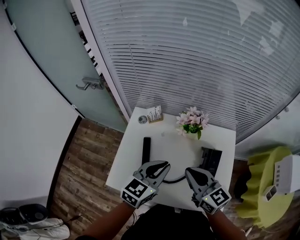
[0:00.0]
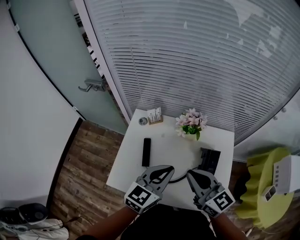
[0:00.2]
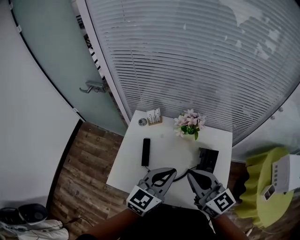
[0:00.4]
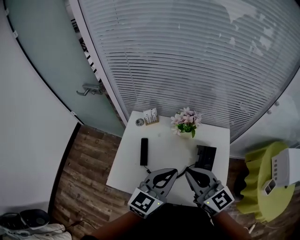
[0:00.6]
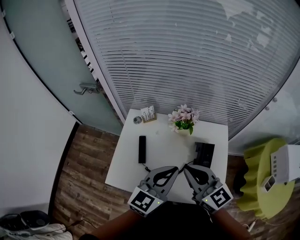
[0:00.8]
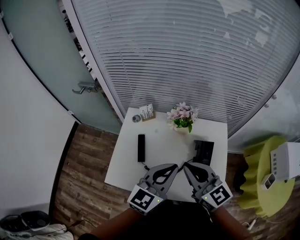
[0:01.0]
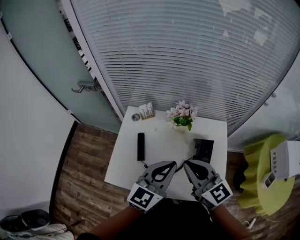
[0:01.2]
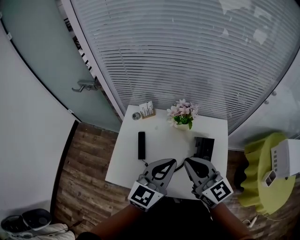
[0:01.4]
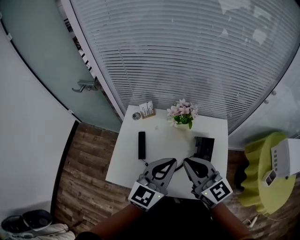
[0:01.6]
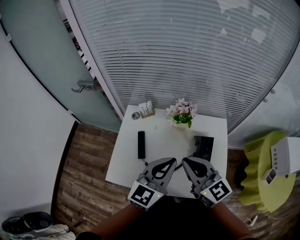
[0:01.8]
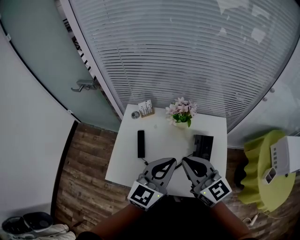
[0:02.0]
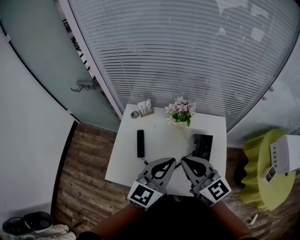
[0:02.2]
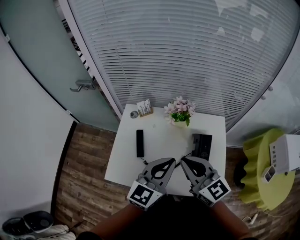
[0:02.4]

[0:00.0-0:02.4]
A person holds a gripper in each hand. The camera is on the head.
0:00.0 to 0:01.2: The right gripper heads upward, covering about 5 cm; the left gripper is displaced upward, backward and to the right by approximately 10 cm.
0:01.2 to 0:02.4: The grippers stay close to where they were, moving slightly.

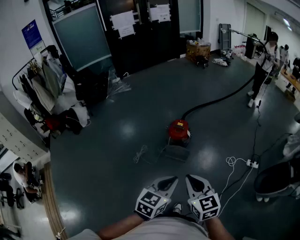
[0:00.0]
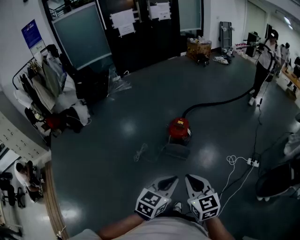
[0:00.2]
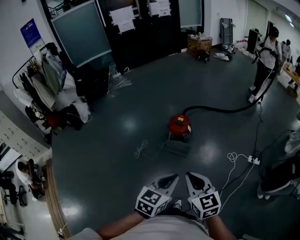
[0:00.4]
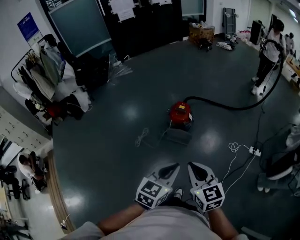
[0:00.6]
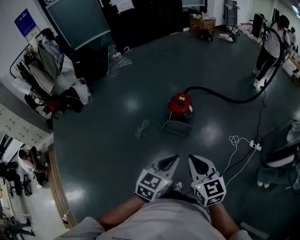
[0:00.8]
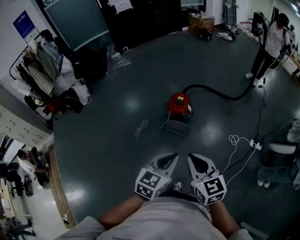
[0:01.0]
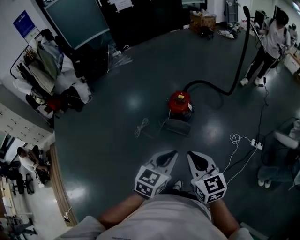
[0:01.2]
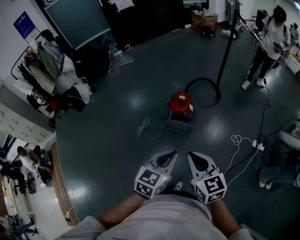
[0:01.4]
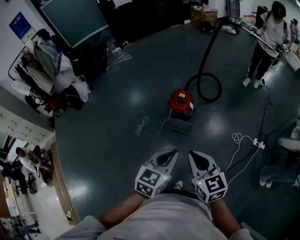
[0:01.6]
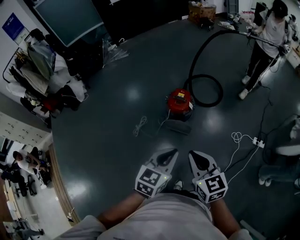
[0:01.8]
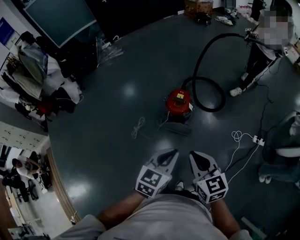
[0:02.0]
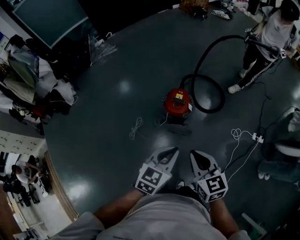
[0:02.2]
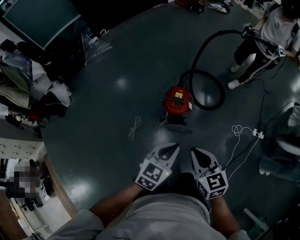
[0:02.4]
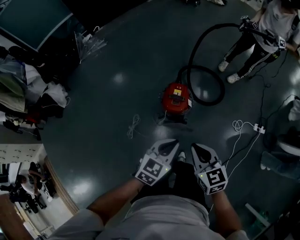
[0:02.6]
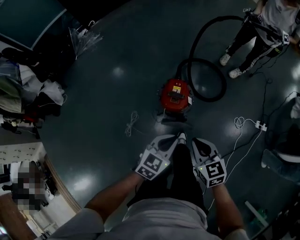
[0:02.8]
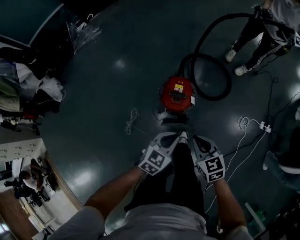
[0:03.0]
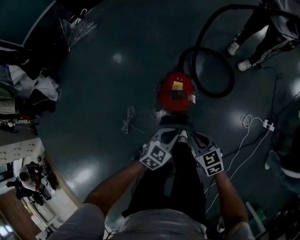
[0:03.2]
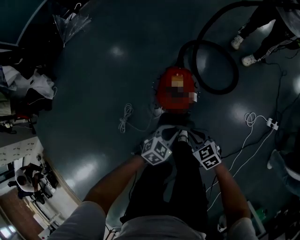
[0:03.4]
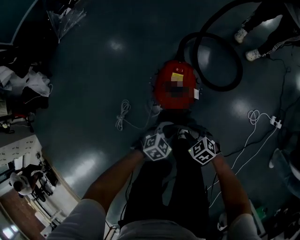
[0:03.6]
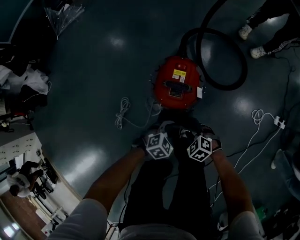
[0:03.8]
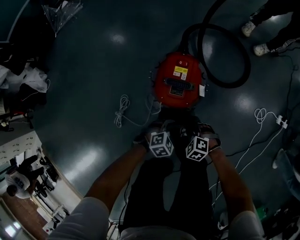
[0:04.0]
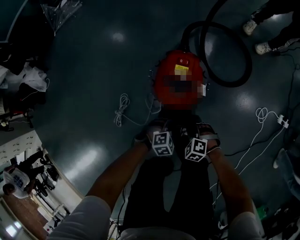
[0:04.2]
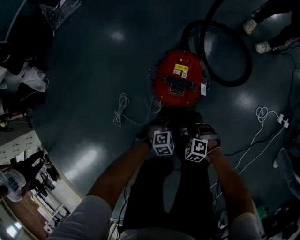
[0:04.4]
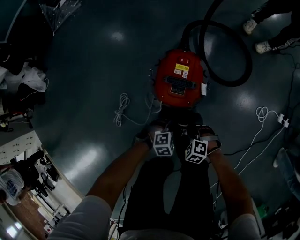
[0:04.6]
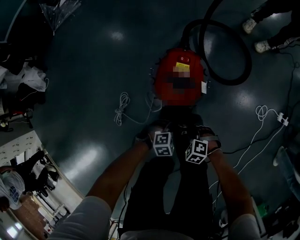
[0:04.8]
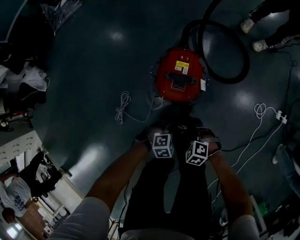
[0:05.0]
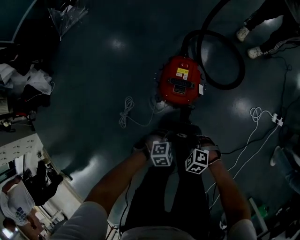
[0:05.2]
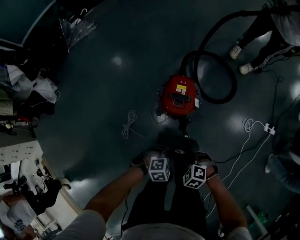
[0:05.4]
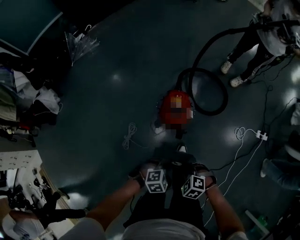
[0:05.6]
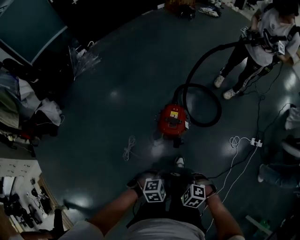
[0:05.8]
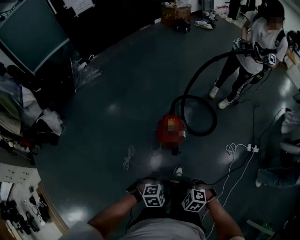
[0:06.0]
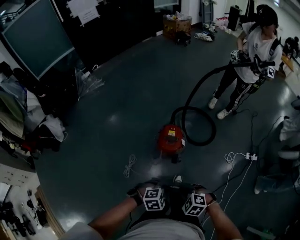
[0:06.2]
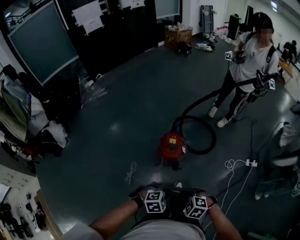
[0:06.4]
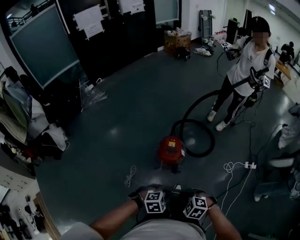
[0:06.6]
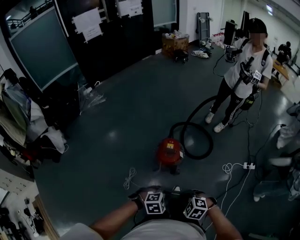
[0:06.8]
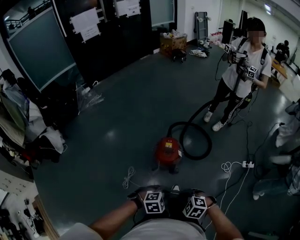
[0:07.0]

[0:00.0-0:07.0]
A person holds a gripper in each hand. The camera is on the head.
0:00.0 to 0:01.4: The left gripper travels forward by about 5 cm. Meanwhile the right gripper travels to the right and forward by some 5 cm.
0:01.4 to 0:02.8: Both grippers move forward and downward, some 40 cm. The left gripper rotates roughly 20 degrees.
0:02.8 to 0:04.2: The grippers both shift downward by approximately 50 cm. The right gripper tilts its fingers roughly 40 degrees downward, and opens its fingers; the left gripper points its fingers approximately 30 degrees further downward, and opens its fingers.
0:04.2 to 0:05.6: The grippers both shift upward by about 35 cm.
0:05.6 to 0:07.0: The two grippers go about 20 cm upward.

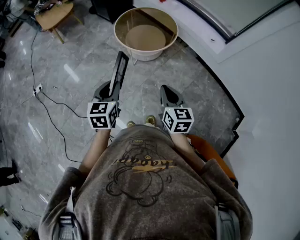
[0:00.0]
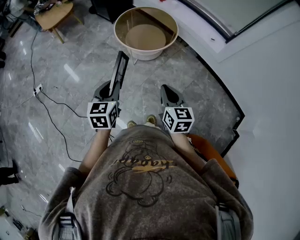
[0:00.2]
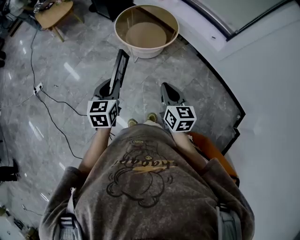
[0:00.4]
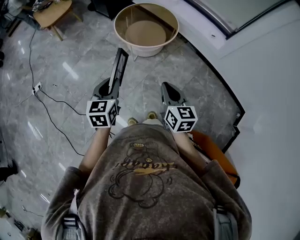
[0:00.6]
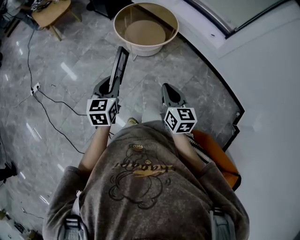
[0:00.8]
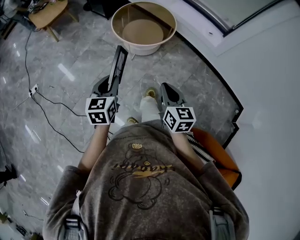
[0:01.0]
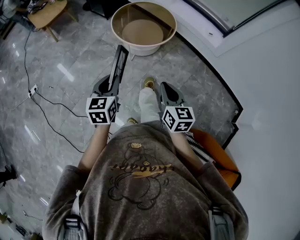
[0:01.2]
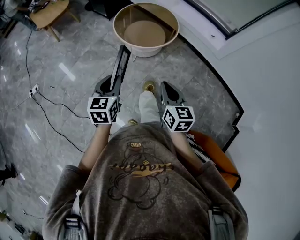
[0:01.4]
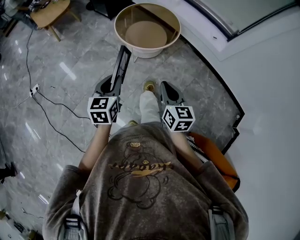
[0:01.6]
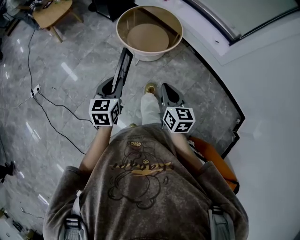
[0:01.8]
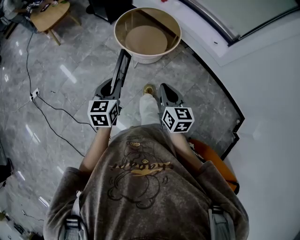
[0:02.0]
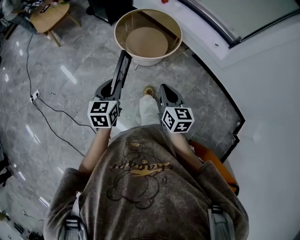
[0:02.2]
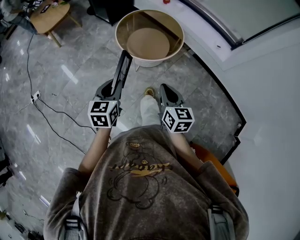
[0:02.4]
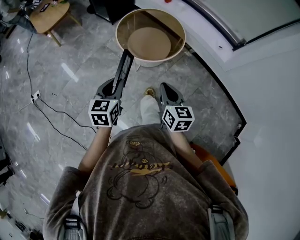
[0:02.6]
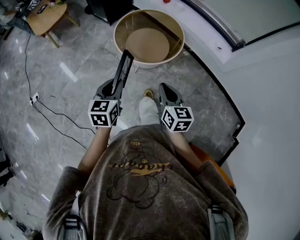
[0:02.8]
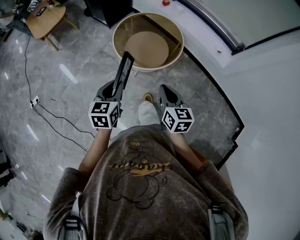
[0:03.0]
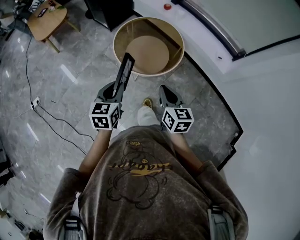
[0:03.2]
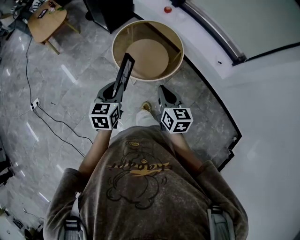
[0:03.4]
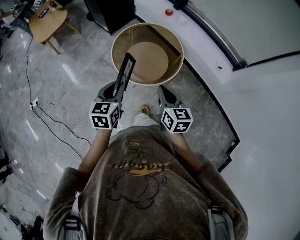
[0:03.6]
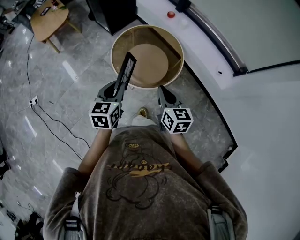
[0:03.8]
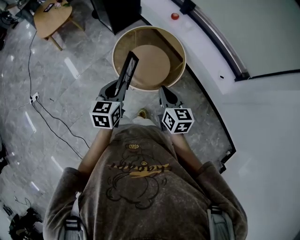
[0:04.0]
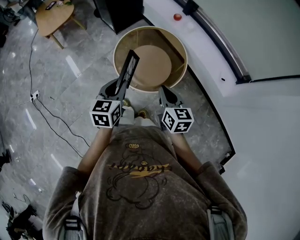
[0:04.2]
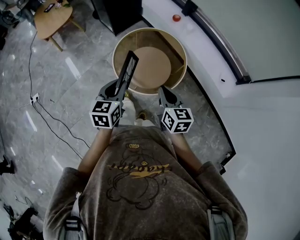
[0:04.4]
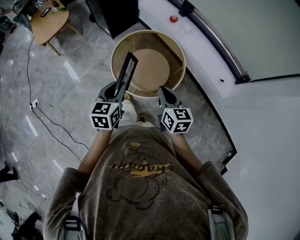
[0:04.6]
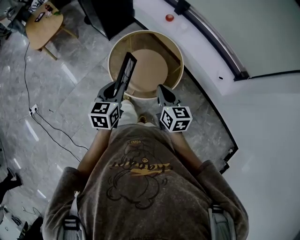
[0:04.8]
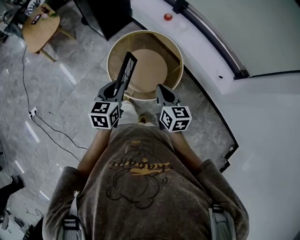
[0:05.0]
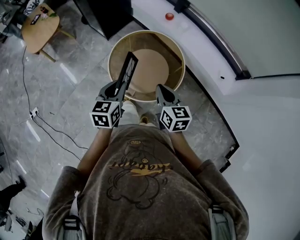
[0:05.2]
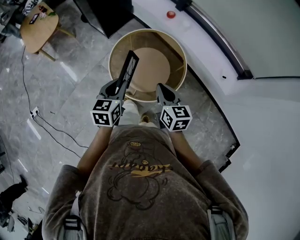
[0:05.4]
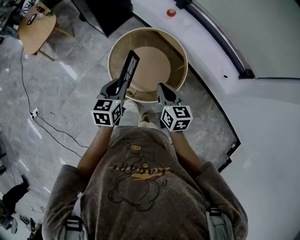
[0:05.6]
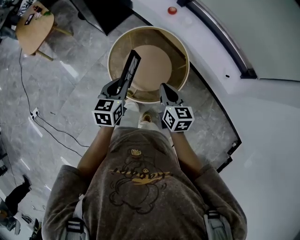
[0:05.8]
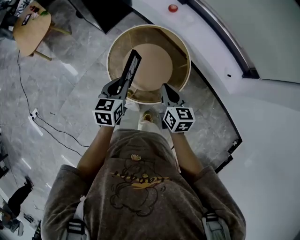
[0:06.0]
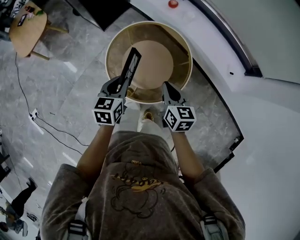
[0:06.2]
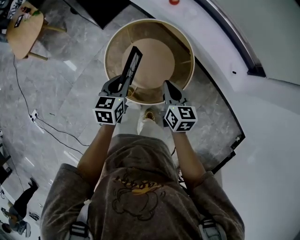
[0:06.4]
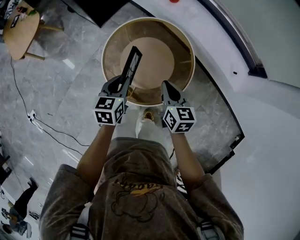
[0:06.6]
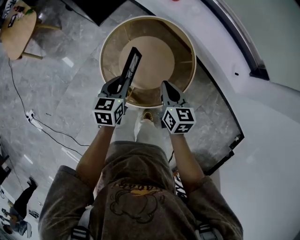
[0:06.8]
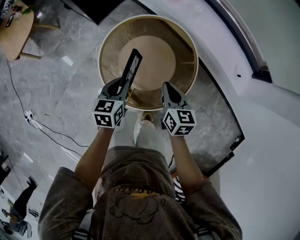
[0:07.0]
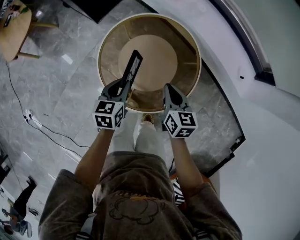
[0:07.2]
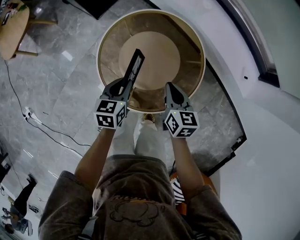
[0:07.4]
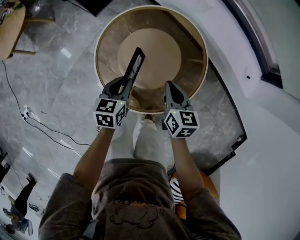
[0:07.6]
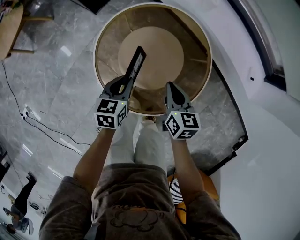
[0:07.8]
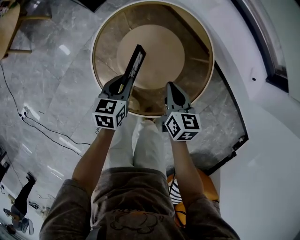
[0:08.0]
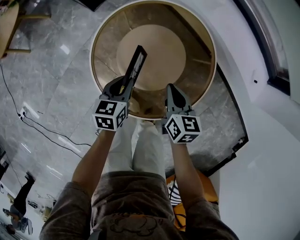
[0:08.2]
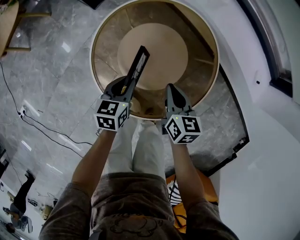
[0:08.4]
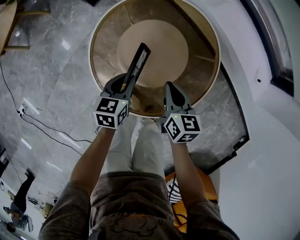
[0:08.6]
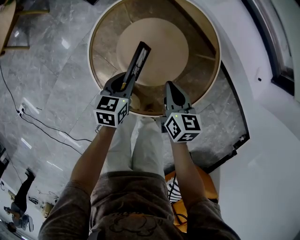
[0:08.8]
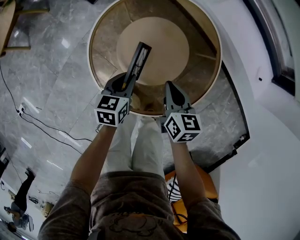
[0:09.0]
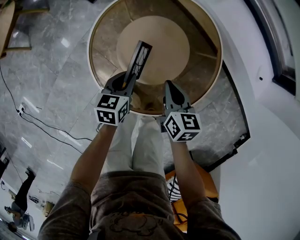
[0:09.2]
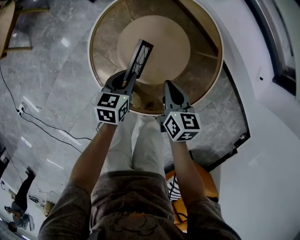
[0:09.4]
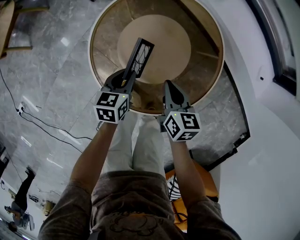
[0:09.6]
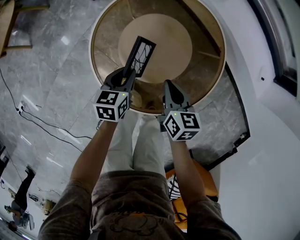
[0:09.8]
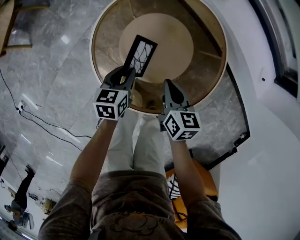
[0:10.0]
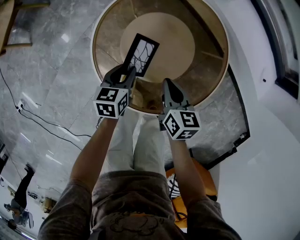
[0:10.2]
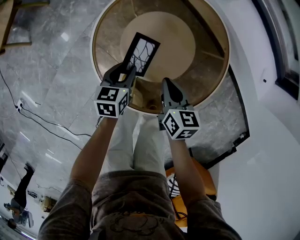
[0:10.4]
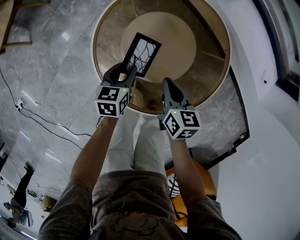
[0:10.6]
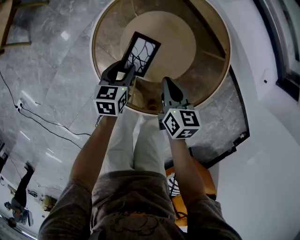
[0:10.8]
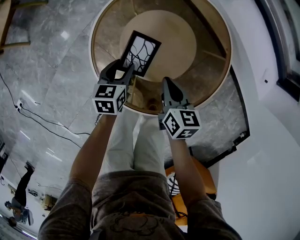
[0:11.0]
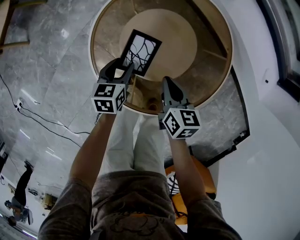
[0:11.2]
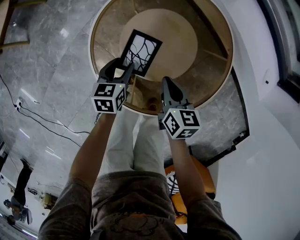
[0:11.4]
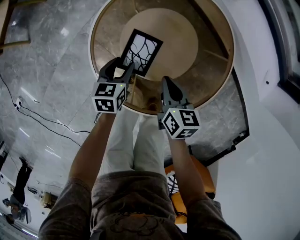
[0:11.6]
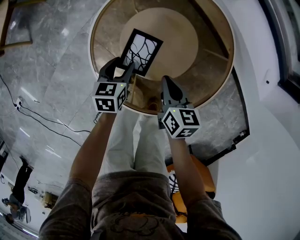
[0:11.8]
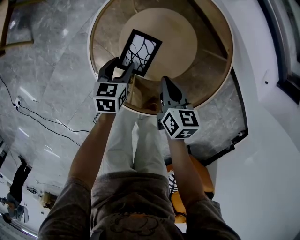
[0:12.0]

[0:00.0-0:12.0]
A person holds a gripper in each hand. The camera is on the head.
0:00.0 to 0:01.6: The left gripper ends up some 5 cm from where it was.
0:01.6 to 0:03.0: The grippers both shift forward by some 15 cm.
0:03.0 to 0:04.4: Both grippers move forward, approximately 20 cm.
0:04.4 to 0:06.0: Both grippers travel together forward and downward, approximately 15 cm.
0:06.0 to 0:07.6: The left gripper heads downward, covering approximately 20 cm. The right gripper moves downward and forward, approximately 20 cm.
0:07.6 to 0:09.0: Both grippers move downward, some 10 cm.
0:09.0 to 0:10.4: The grippers stay close to where they were, moving slightly.
0:10.4 to 0:12.0: The grippers make only small movements.

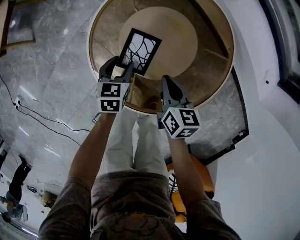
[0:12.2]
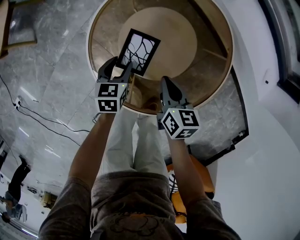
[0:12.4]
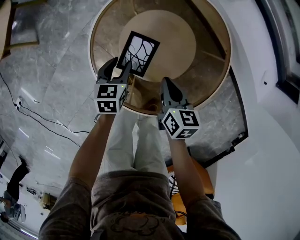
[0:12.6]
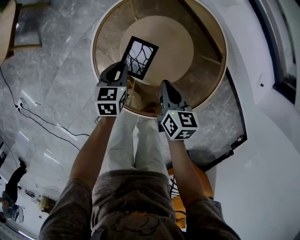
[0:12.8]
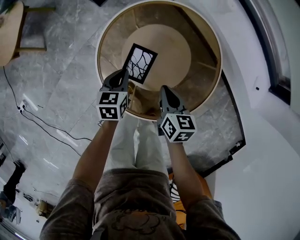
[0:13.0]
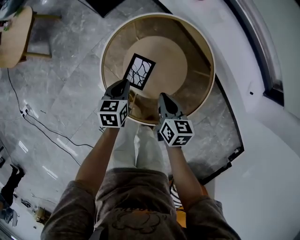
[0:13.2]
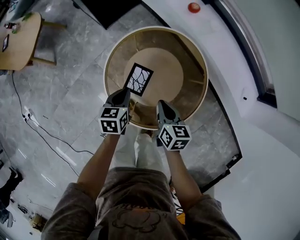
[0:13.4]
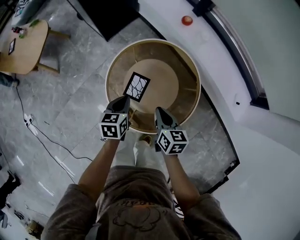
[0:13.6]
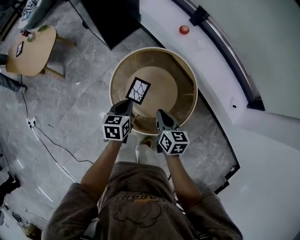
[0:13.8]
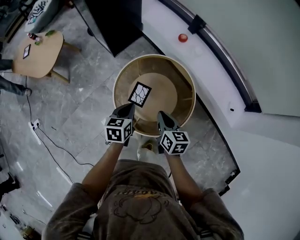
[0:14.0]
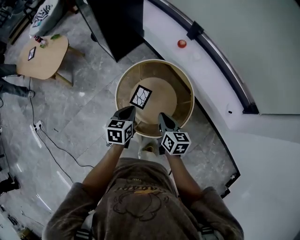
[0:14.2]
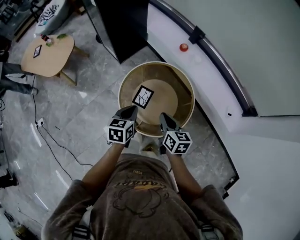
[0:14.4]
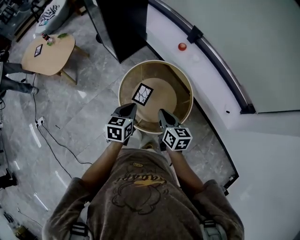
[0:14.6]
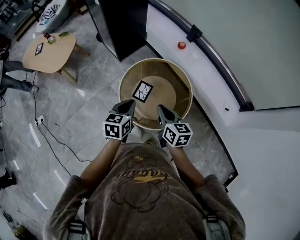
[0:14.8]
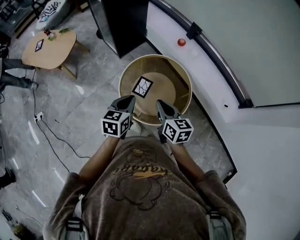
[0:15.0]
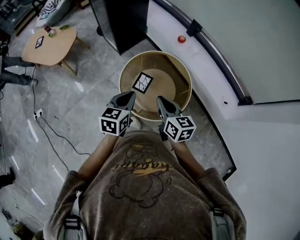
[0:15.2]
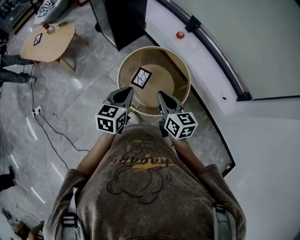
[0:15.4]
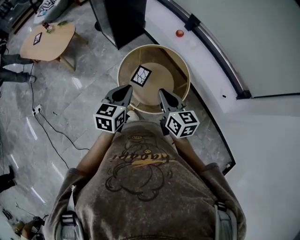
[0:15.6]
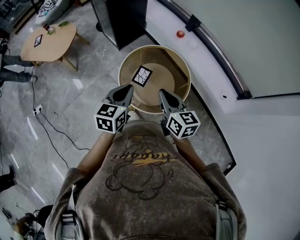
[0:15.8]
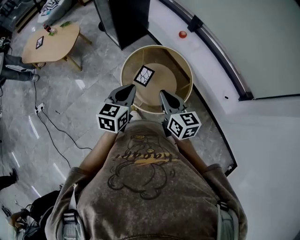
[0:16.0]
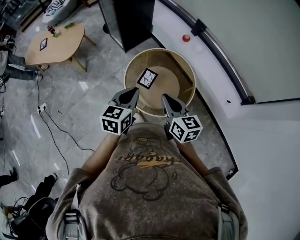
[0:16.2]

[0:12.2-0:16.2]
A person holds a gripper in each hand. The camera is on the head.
0:12.2 to 0:13.6: Both grippers move upward, roughly 20 cm. The left gripper closes.
0:13.6 to 0:14.8: Both grippers travel together upward and backward, approximately 20 cm.
0:14.8 to 0:16.2: Both grippers travel together upward and backward, roughly 10 cm.
